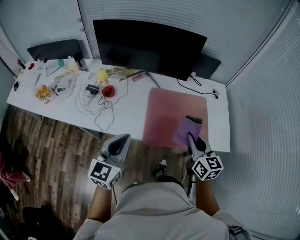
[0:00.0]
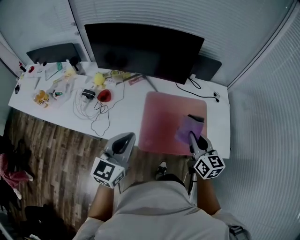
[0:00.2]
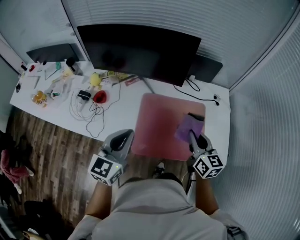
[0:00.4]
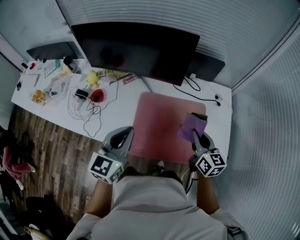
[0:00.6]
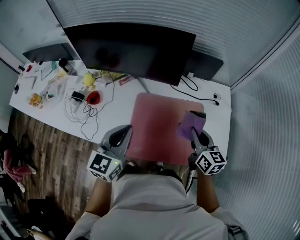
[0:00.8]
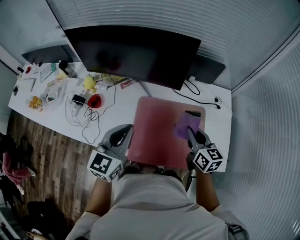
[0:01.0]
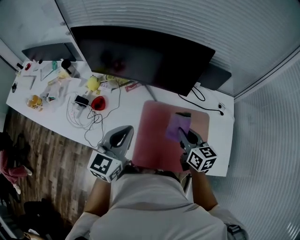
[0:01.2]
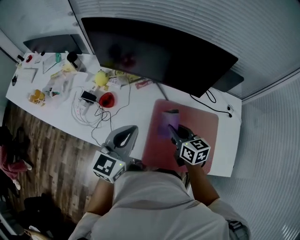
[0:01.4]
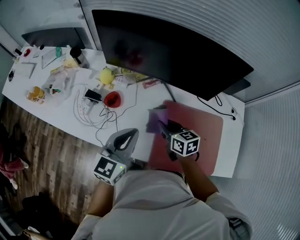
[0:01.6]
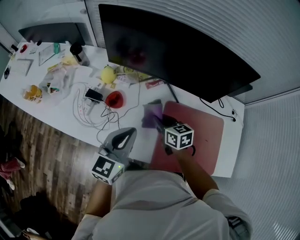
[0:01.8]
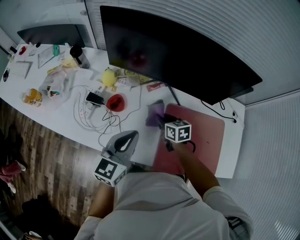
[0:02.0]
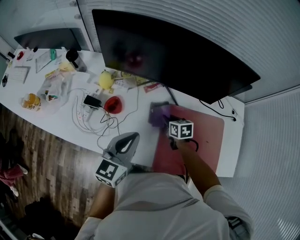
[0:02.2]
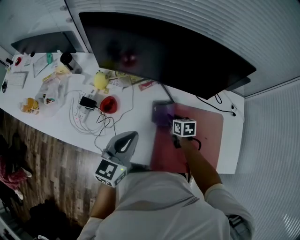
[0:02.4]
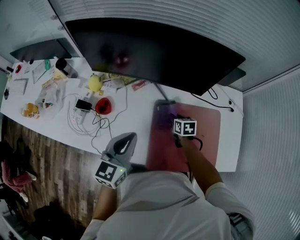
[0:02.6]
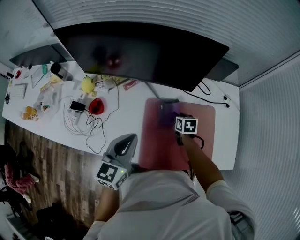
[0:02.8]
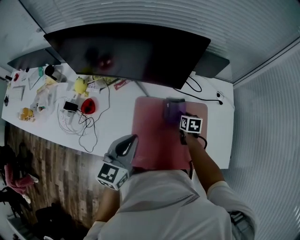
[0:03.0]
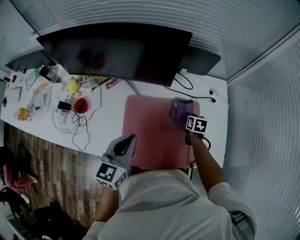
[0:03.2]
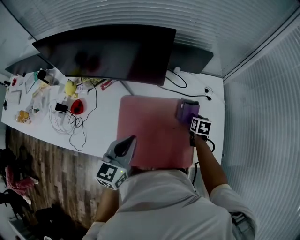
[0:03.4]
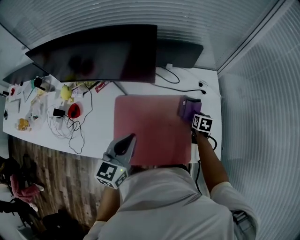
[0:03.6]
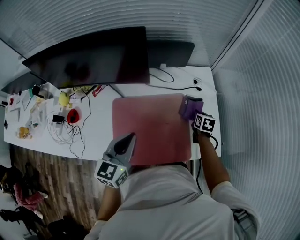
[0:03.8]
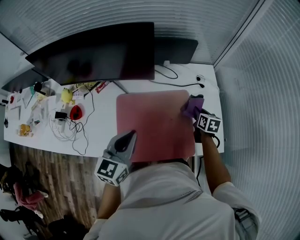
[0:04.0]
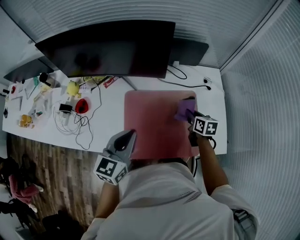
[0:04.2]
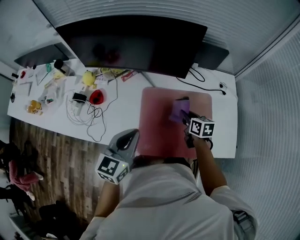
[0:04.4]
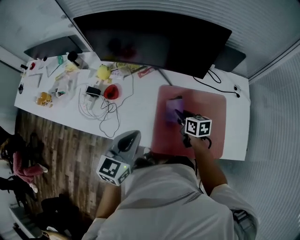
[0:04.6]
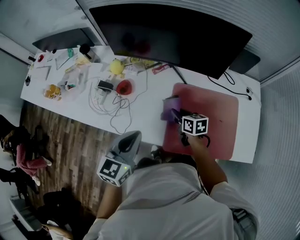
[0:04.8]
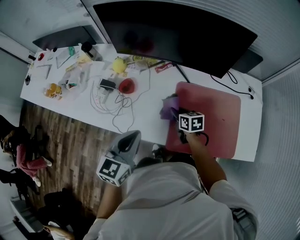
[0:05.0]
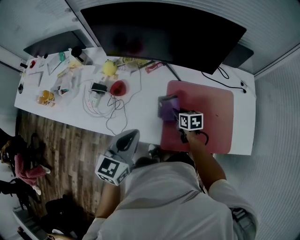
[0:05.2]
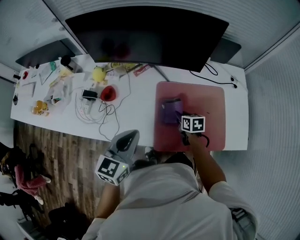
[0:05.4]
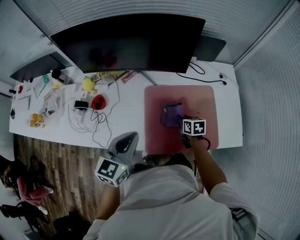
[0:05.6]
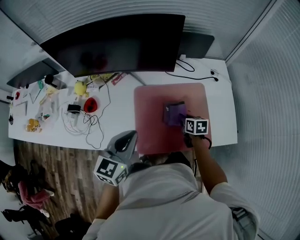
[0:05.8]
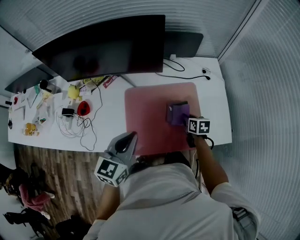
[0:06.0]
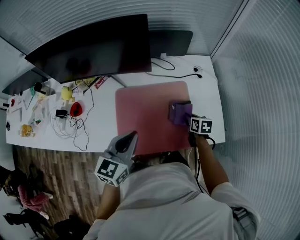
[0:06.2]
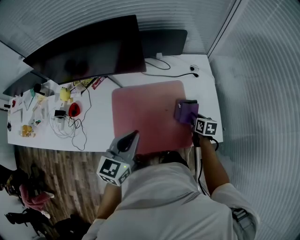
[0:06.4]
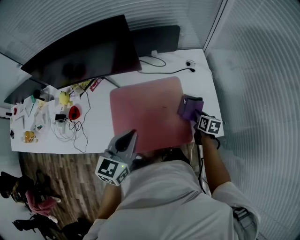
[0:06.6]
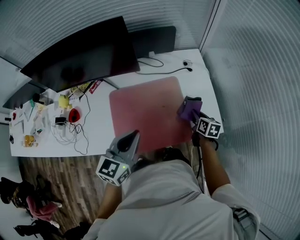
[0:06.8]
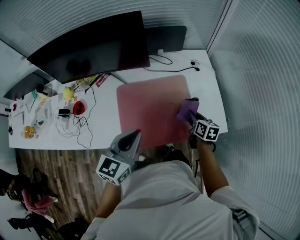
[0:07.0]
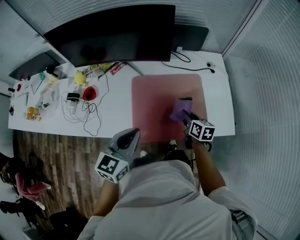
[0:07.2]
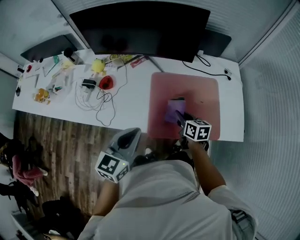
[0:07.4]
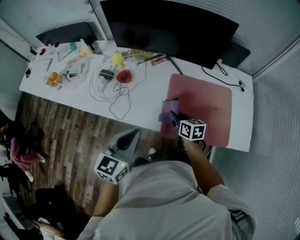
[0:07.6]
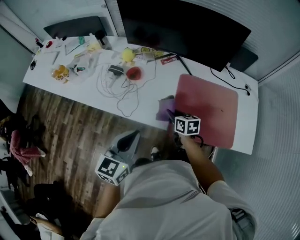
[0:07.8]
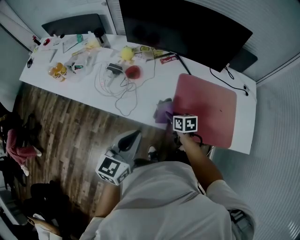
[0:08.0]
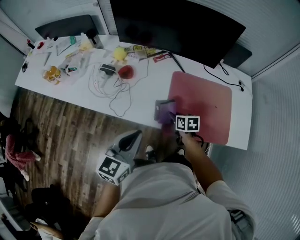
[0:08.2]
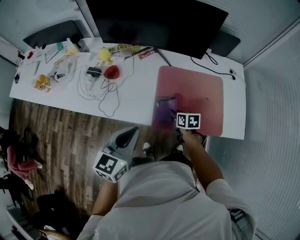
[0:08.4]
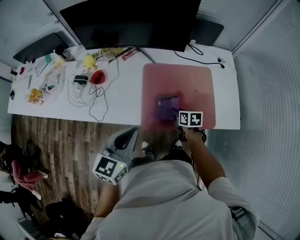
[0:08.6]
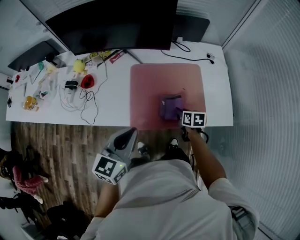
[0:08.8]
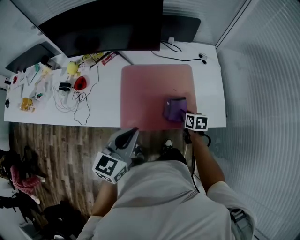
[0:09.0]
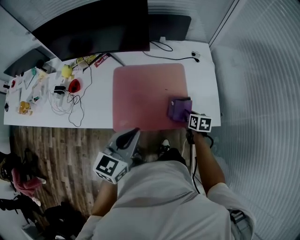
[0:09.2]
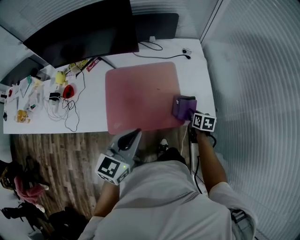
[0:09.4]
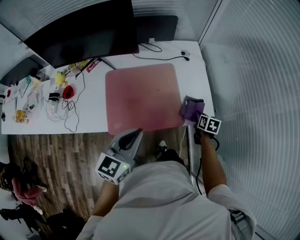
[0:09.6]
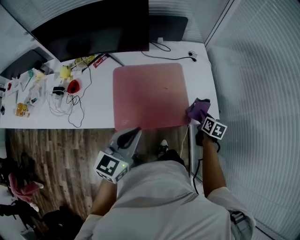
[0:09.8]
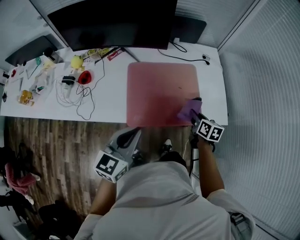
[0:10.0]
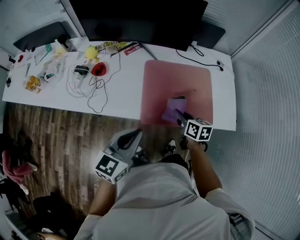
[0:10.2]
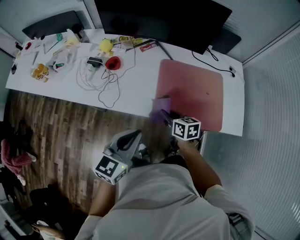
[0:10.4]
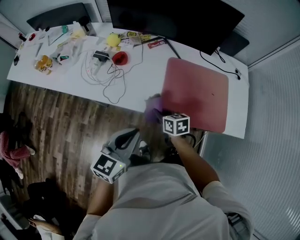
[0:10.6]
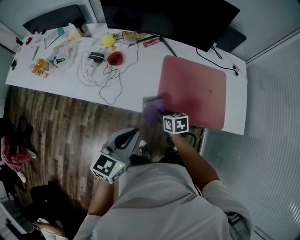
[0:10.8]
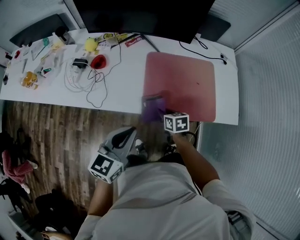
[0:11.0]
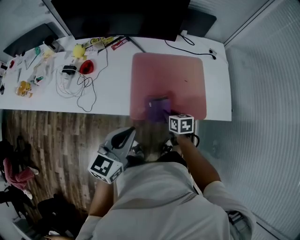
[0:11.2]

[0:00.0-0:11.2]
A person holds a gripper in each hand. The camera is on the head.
0:00.0 to 0:01.6: The left gripper goes approximately 20 cm forward. The right gripper moves forward, to the left and downward, approximately 35 cm, and swivels about 30 degrees.
0:01.6 to 0:03.2: The right gripper heads to the right, covering roughly 40 cm, and changes its angle by about 40 degrees. The left gripper is displaced to the right by some 20 cm.
0:03.2 to 0:04.8: The right gripper shifts by about 35 cm, and rotates roughly 30 degrees. The left gripper moves roughly 20 cm.
0:04.8 to 0:06.4: The left gripper shifts by approximately 30 cm; the right gripper moves about 50 cm, and swivels about 30 degrees.
0:06.4 to 0:08.0: The right gripper ends up approximately 50 cm from where it was, and swivels some 30 degrees, while the left gripper changes place by some 35 cm.
0:08.0 to 0:09.6: The left gripper ends up roughly 35 cm from where it was, and turns by approximately 20 degrees. The right gripper ends up some 60 cm from where it was, and changes its angle by roughly 40 degrees.
0:09.6 to 0:11.2: The right gripper travels upward and back again, approximately 10 cm each way, and changes its angle by approximately 30 degrees.

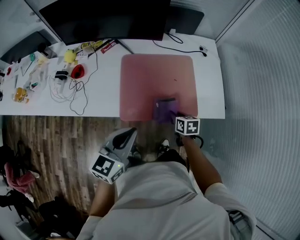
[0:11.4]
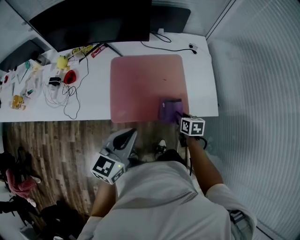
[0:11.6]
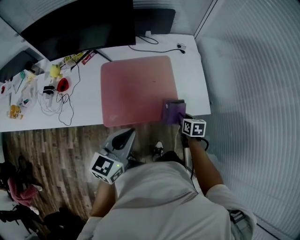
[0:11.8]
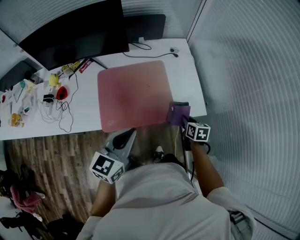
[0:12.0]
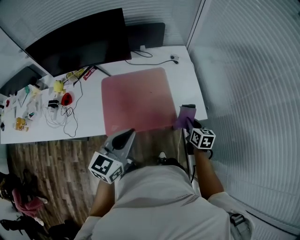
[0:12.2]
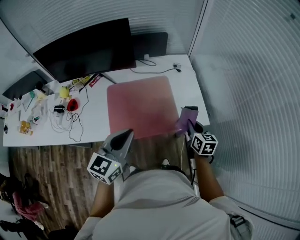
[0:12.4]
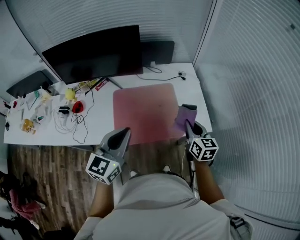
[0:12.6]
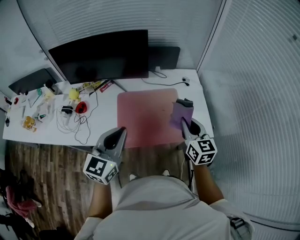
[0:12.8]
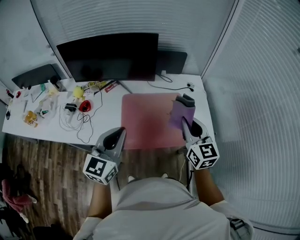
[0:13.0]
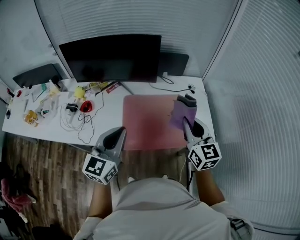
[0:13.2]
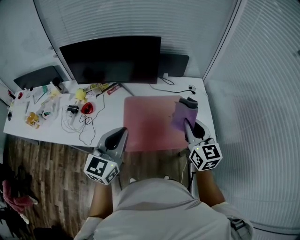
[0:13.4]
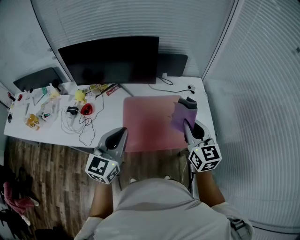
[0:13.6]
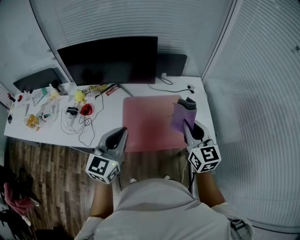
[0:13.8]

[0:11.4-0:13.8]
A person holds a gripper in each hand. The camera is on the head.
0:11.4 to 0:12.6: The right gripper travels upward and to the right by roughly 25 cm, and turns by about 40 degrees. The left gripper is displaced upward by approximately 10 cm.
0:12.6 to 0:13.8: The right gripper moves upward and to the left, approximately 15 cm, and rotates some 20 degrees; the left gripper moves to the left, about 5 cm.

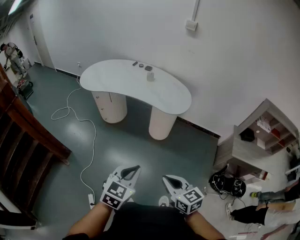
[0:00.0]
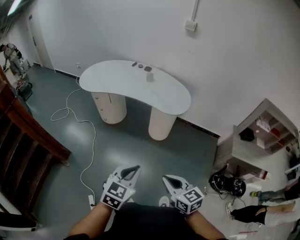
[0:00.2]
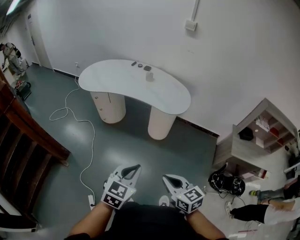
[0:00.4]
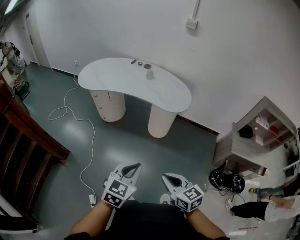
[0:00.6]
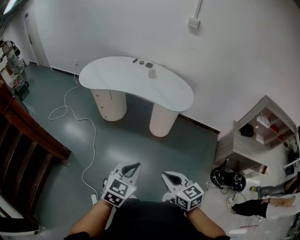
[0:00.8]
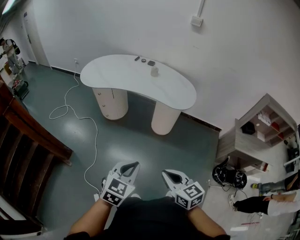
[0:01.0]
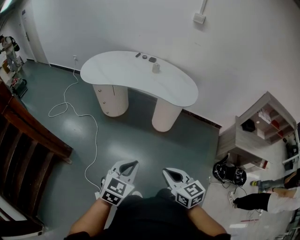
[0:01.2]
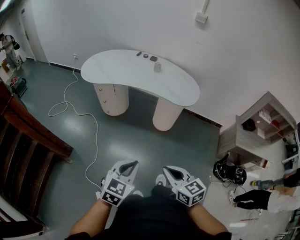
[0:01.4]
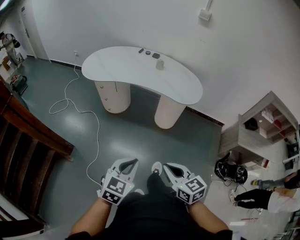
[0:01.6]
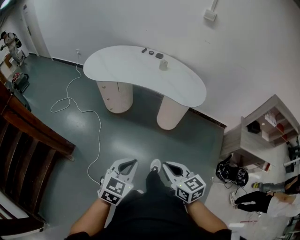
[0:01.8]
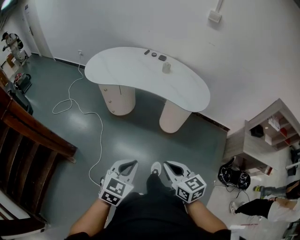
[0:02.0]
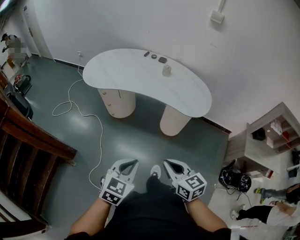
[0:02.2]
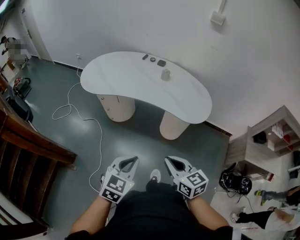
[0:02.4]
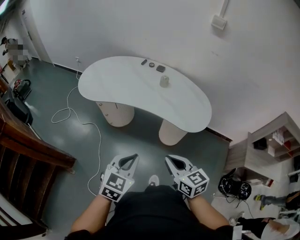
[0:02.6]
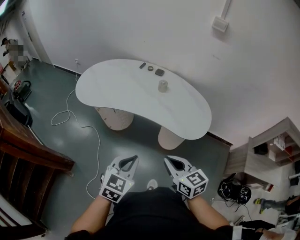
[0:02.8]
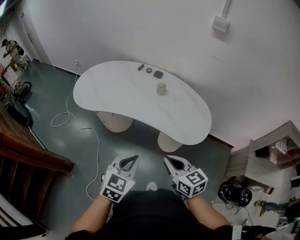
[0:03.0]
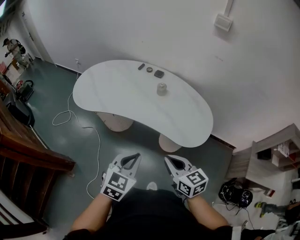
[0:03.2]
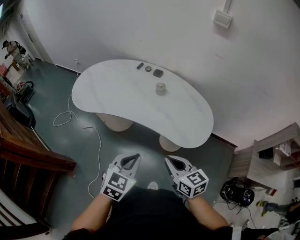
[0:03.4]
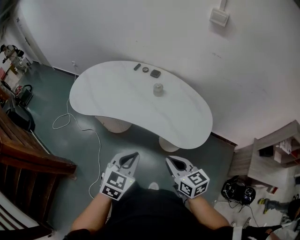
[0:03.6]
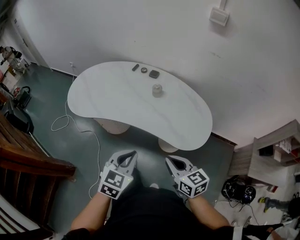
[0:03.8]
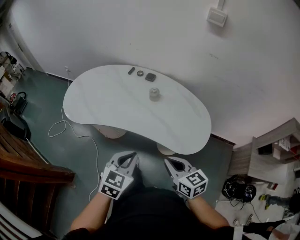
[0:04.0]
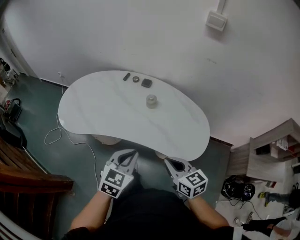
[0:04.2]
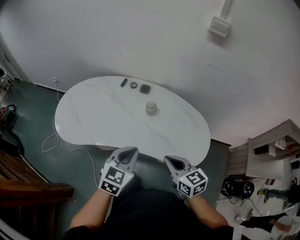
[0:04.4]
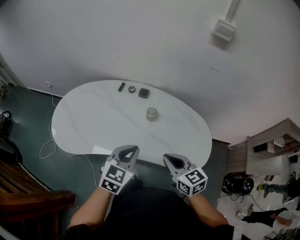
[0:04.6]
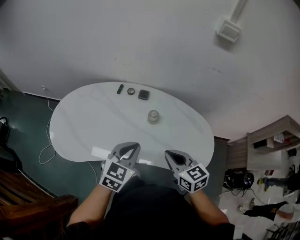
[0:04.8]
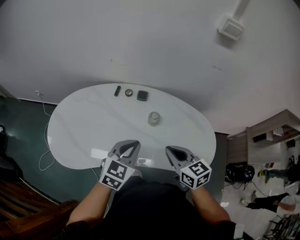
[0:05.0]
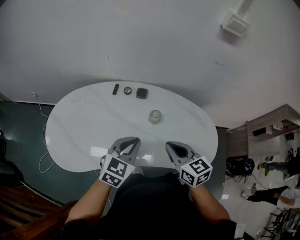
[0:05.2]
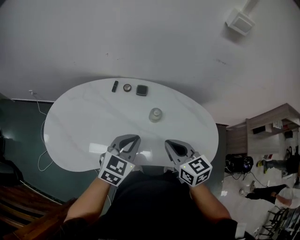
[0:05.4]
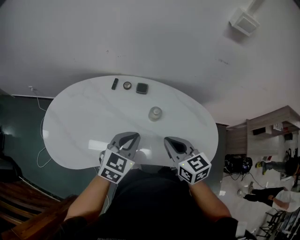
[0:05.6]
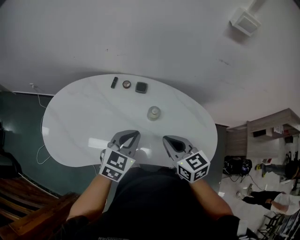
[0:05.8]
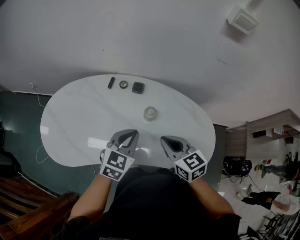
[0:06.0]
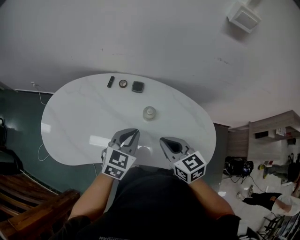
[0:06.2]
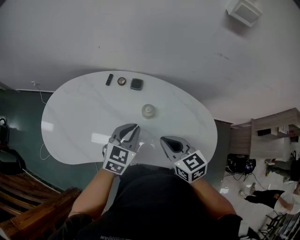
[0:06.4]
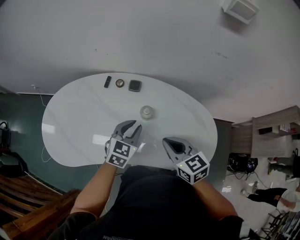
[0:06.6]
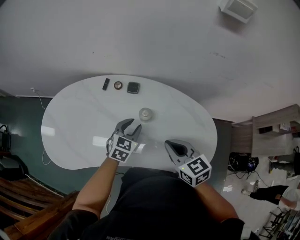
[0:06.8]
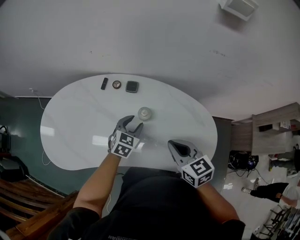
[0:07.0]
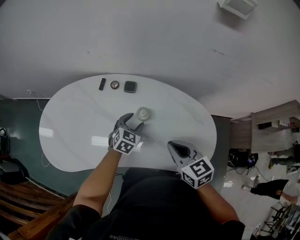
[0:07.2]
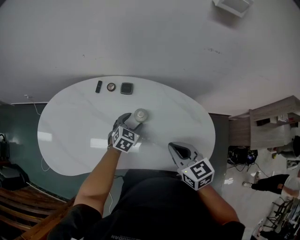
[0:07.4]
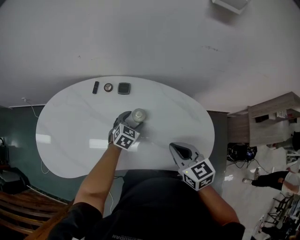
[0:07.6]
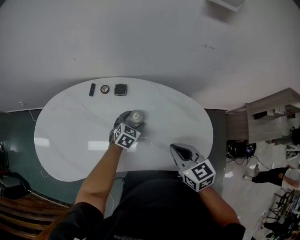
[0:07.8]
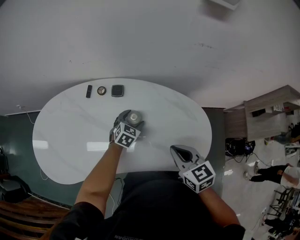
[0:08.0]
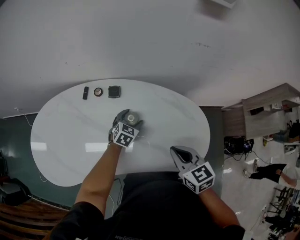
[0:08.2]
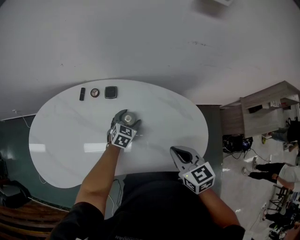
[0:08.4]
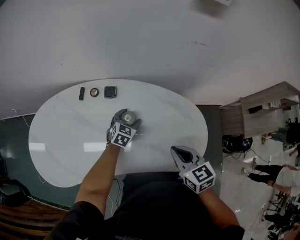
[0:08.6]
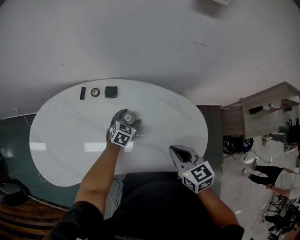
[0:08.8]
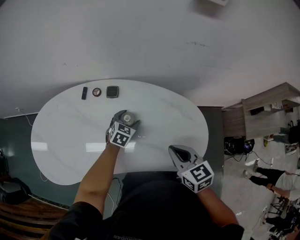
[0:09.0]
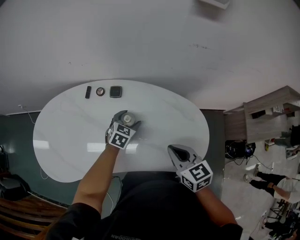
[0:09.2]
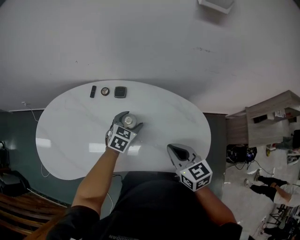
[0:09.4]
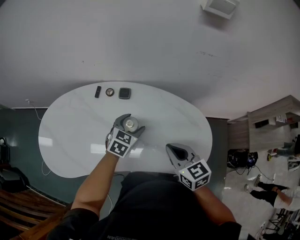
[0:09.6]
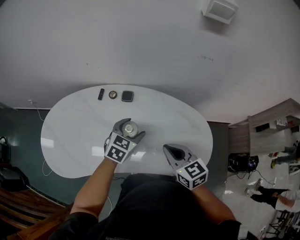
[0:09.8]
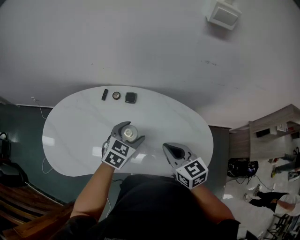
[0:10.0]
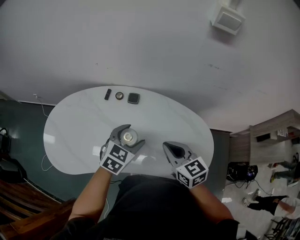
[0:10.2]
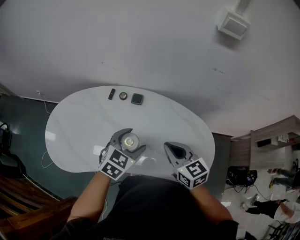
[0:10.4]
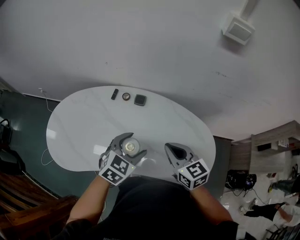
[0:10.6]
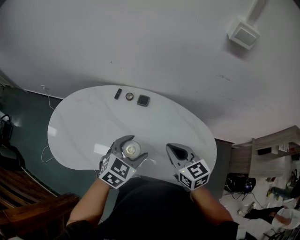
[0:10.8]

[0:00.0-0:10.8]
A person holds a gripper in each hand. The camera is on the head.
0:00.0 to 0:01.6: Both grippers move to the left, approximately 15 cm.
0:01.6 to 0:03.0: The two grippers go approximately 35 cm forward.
0:03.0 to 0:04.6: Both grippers travel together forward, about 25 cm.
0:04.6 to 0:06.2: Both grippers travel together forward, roughly 15 cm.
0:06.2 to 0:07.8: The right gripper shifts roughly 10 cm to the right; the left gripper goes roughly 20 cm downward and forward, and opens up.
0:07.8 to 0:09.2: The grippers stay close to where they were, moving slightly.
0:09.2 to 0:10.8: The left gripper goes about 20 cm upward and backward. Meanwhile the right gripper is displaced to the left by roughly 5 cm.
